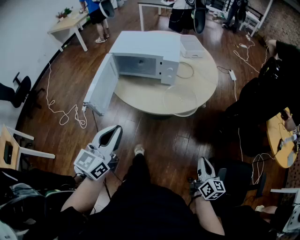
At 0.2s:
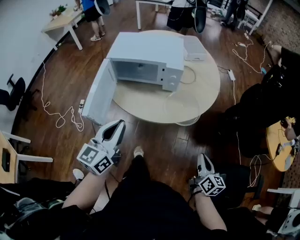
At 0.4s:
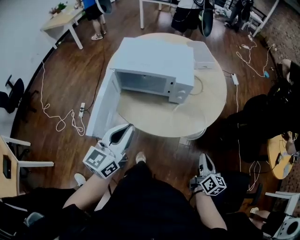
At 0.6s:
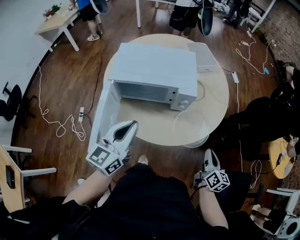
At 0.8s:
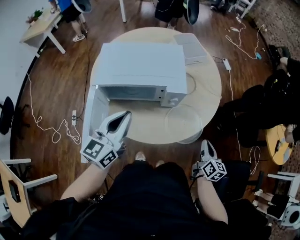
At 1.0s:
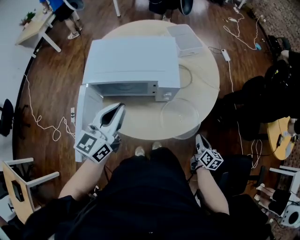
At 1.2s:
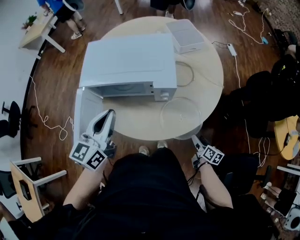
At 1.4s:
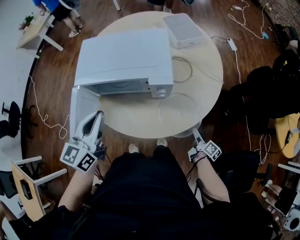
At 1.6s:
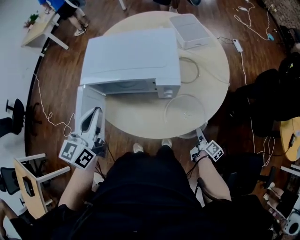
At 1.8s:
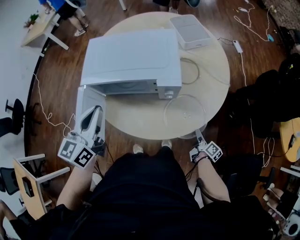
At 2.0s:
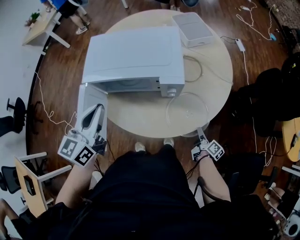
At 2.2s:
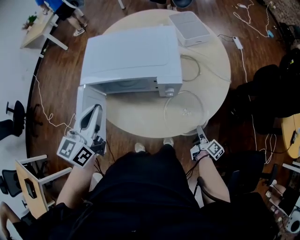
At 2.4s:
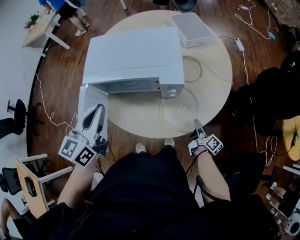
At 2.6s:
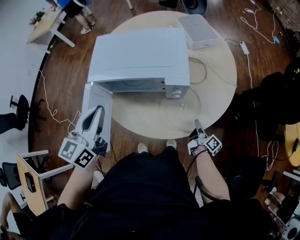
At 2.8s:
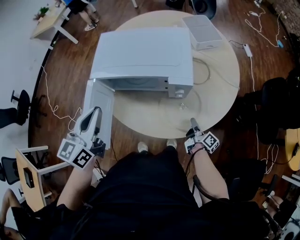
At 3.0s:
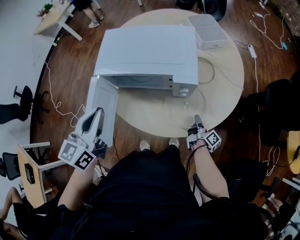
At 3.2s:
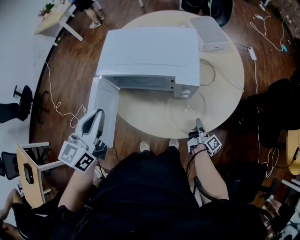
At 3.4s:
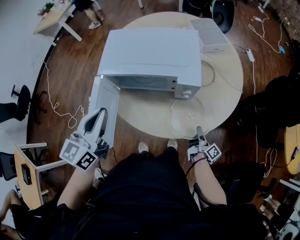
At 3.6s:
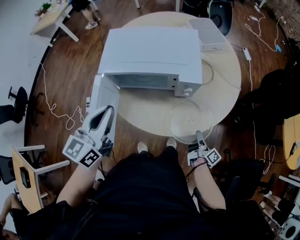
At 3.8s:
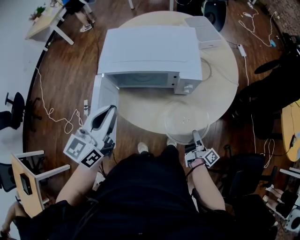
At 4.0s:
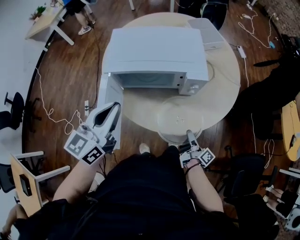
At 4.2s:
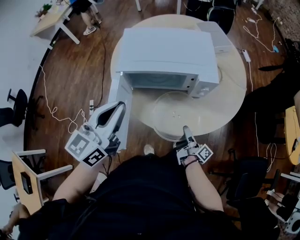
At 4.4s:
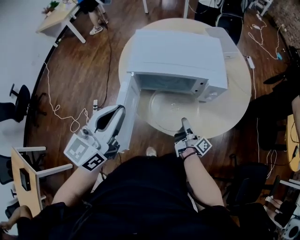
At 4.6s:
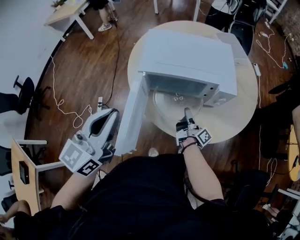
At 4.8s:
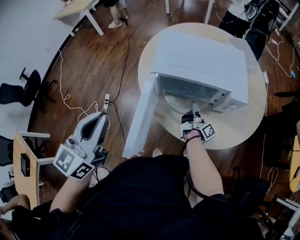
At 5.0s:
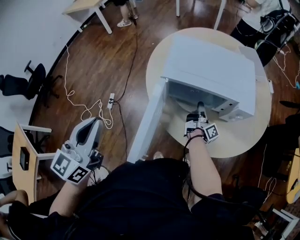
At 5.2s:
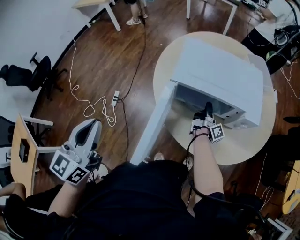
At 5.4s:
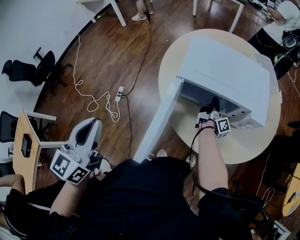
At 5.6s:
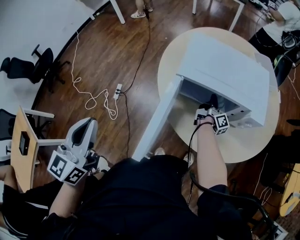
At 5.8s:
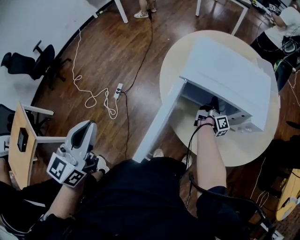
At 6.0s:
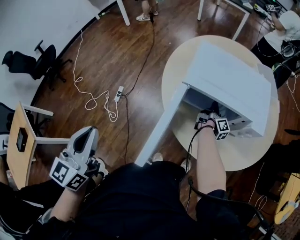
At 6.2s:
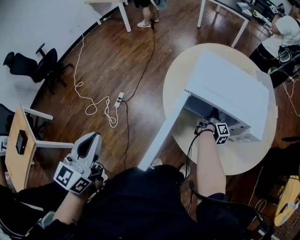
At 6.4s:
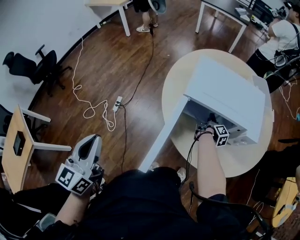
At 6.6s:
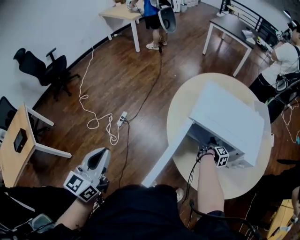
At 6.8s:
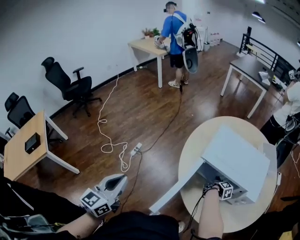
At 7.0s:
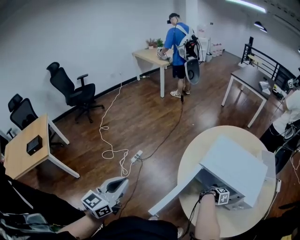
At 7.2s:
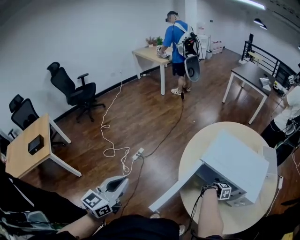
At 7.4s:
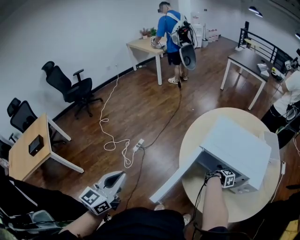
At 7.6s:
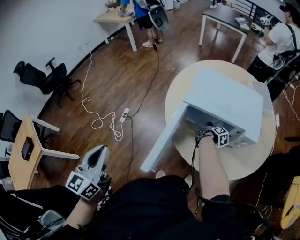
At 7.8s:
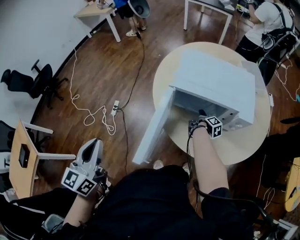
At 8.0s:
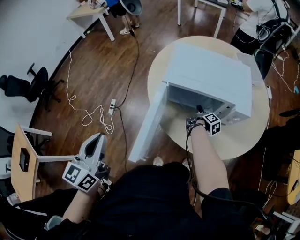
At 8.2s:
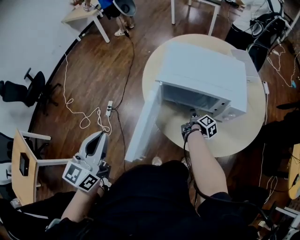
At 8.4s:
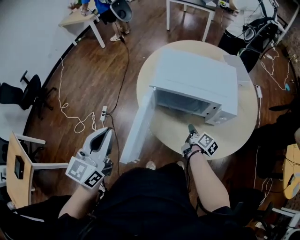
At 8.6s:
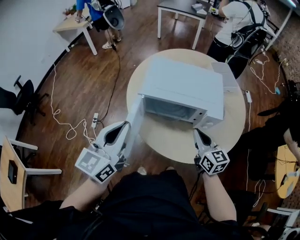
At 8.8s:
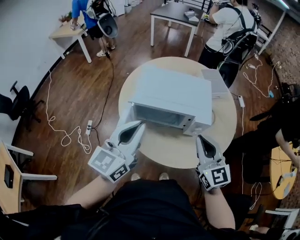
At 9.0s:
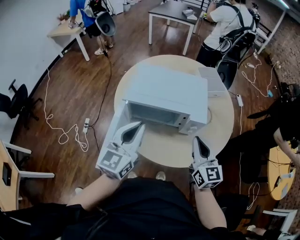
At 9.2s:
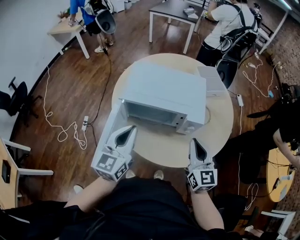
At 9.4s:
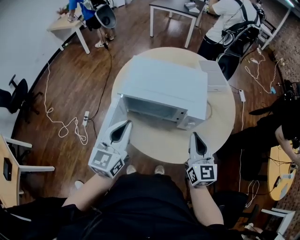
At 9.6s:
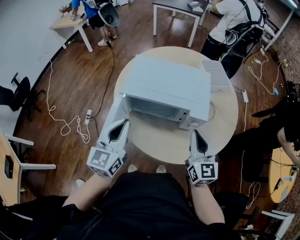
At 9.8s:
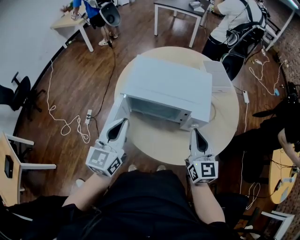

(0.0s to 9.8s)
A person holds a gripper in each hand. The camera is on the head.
0.0s - 1.4s: The left gripper shifts about 25 cm forward; the right gripper goes some 30 cm forward and downward, twists about 40 degrees clockwise, seen from behind, and opens.
1.4s - 2.8s: The left gripper heads to the left, covering approximately 5 cm, while the right gripper heads to the left and forward, covering approximately 10 cm, and closes its fingers.
2.8s - 4.2s: The right gripper travels to the left, upward and backward by roughly 15 cm.
4.2s - 5.6s: The left gripper goes some 25 cm to the left and backward, and swivels approximately 30 degrees; the right gripper heads forward and to the left, covering approximately 30 cm.
5.6s - 7.0s: The right gripper changes place by some 5 cm, angles its fingers downward, by roughly 40 degrees, and opens. Meanwhile the left gripper moves some 5 cm.
7.0s - 8.4s: The left gripper is displaced to the right and forward by roughly 15 cm. Meanwhile the right gripper shifts some 15 cm backward and upward, changes its angle by about 30 degrees, and closes.
8.4s - 9.8s: The left gripper goes about 15 cm to the right and forward. Meanwhile the right gripper is displaced upward by some 25 cm, and rolls counterclockwise, seen from behind, by approximately 60 degrees.

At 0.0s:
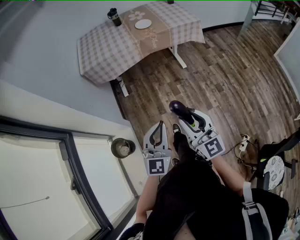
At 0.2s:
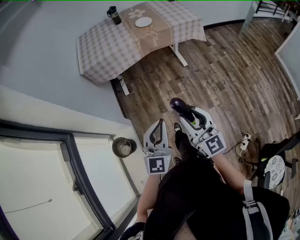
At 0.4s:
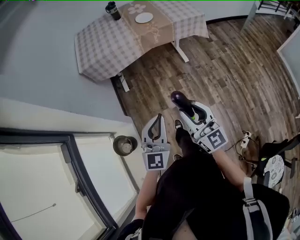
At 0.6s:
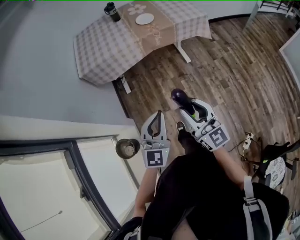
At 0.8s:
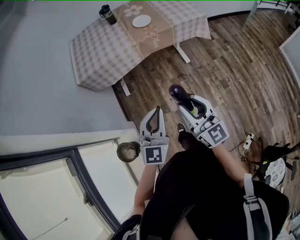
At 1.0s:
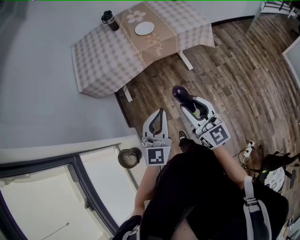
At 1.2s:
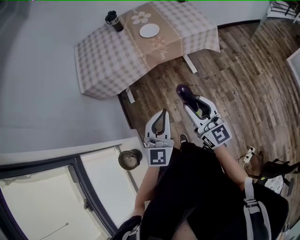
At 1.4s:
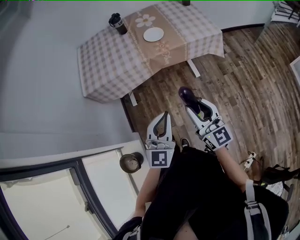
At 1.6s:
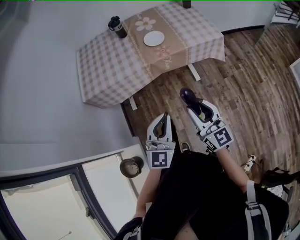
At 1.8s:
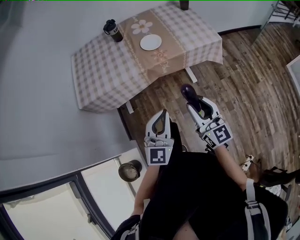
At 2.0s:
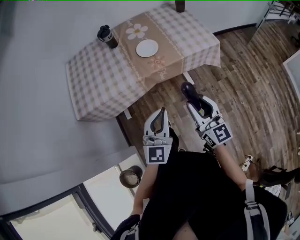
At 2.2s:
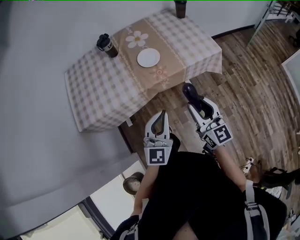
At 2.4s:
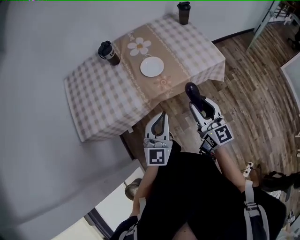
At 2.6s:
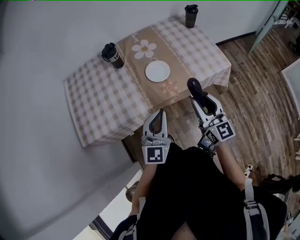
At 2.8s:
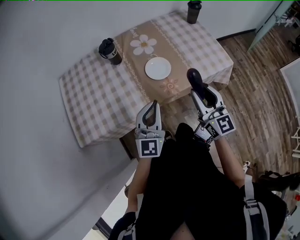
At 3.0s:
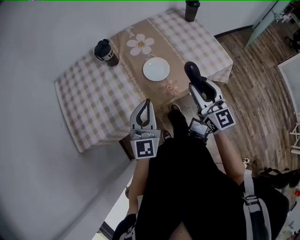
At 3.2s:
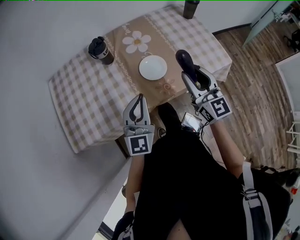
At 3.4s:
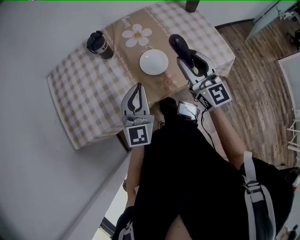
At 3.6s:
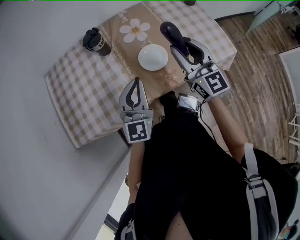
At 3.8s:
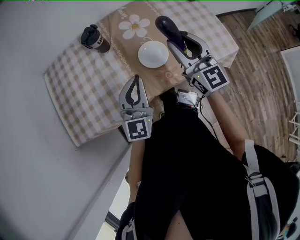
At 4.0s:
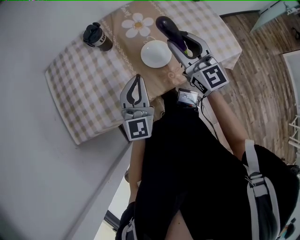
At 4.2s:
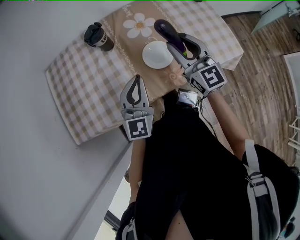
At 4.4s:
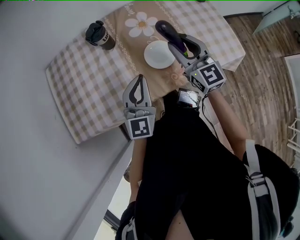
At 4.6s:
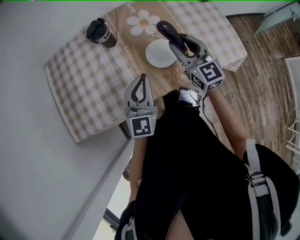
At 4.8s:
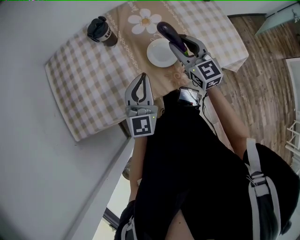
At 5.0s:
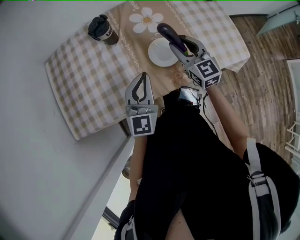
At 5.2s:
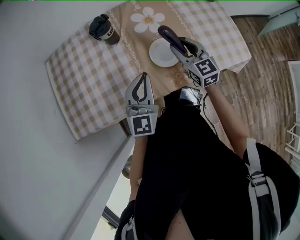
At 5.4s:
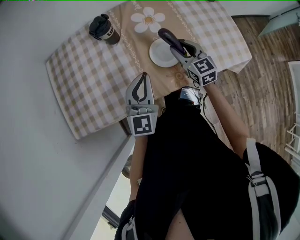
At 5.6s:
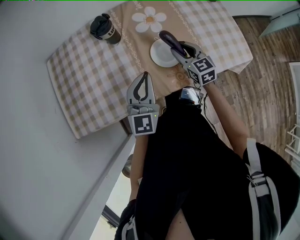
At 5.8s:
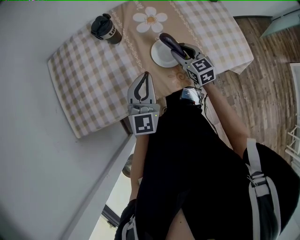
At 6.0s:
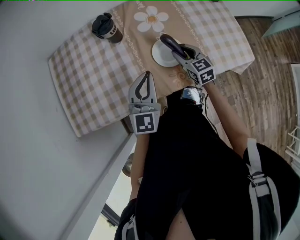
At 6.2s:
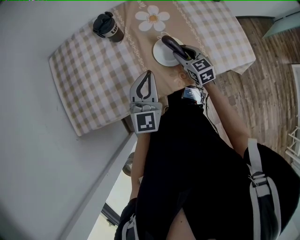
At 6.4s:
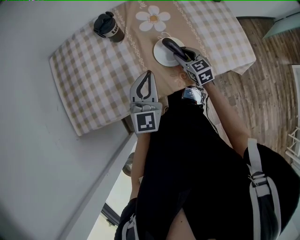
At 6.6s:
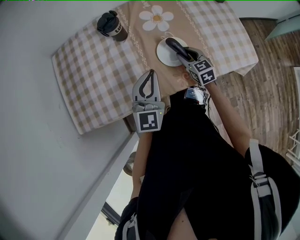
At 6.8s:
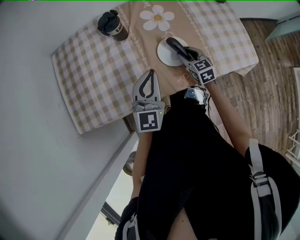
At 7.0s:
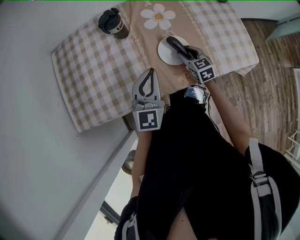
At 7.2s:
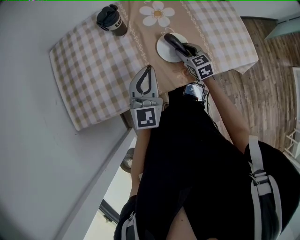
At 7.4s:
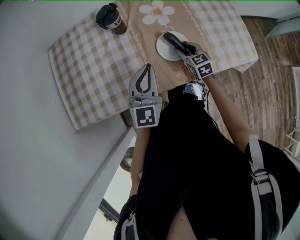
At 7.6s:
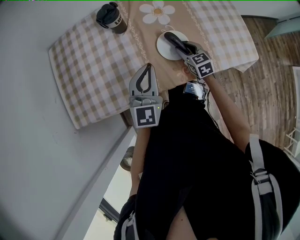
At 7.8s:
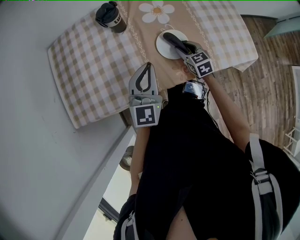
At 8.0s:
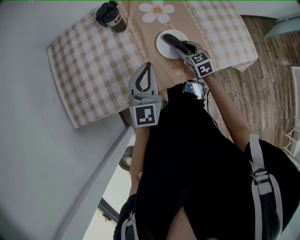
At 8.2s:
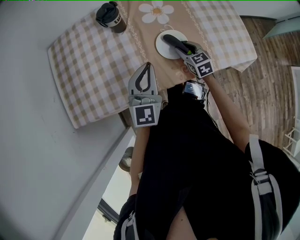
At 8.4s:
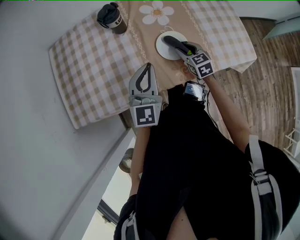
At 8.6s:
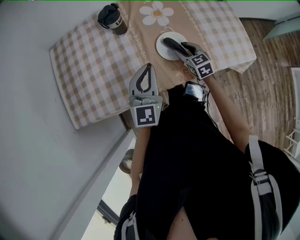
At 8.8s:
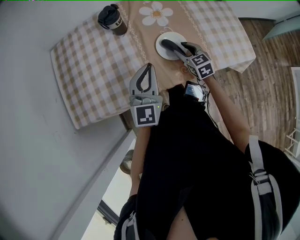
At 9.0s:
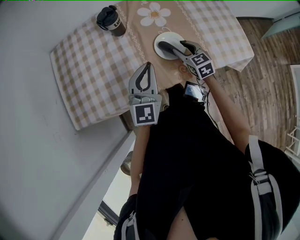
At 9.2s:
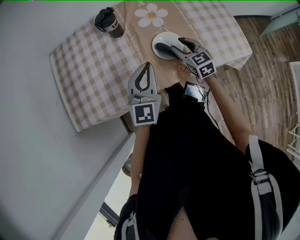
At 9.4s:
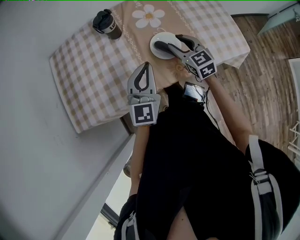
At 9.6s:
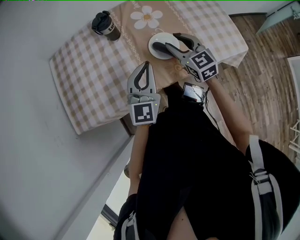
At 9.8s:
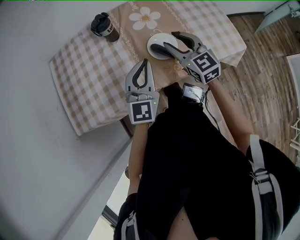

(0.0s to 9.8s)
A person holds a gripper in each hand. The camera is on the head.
0.0s - 1.4s: Both grippers travel together forward, about 30 cm.
1.4s - 2.8s: Both grippers move forward, some 40 cm.
2.8s - 4.2s: The left gripper goes roughly 10 cm forward. Meanwhile the right gripper moves forward, approximately 20 cm.
4.2s - 5.6s: The right gripper is displaced downward by about 15 cm, and rotates roughly 20 degrees.
5.6s - 7.0s: The right gripper goes some 5 cm downward.
7.0s - 8.4s: The two grippers keep their place.
8.4s - 9.8s: The right gripper moves upward, roughly 20 cm, and turns by approximately 20 degrees, while the left gripper moves some 5 cm.

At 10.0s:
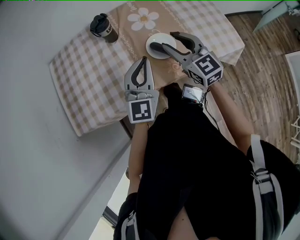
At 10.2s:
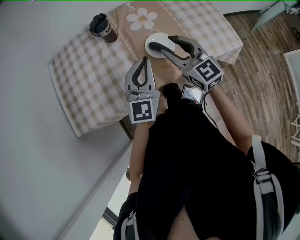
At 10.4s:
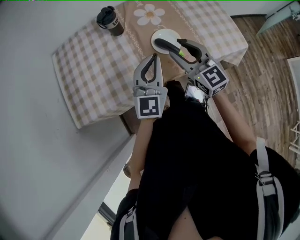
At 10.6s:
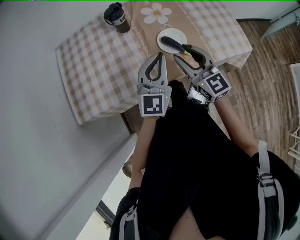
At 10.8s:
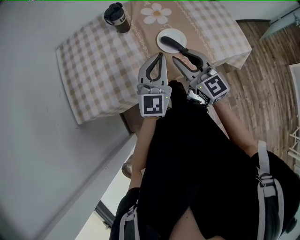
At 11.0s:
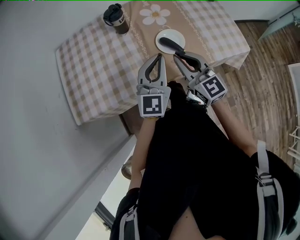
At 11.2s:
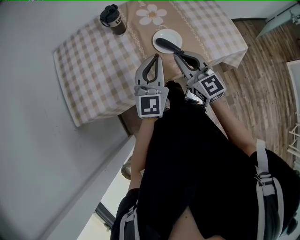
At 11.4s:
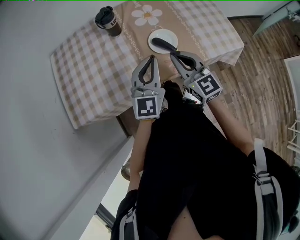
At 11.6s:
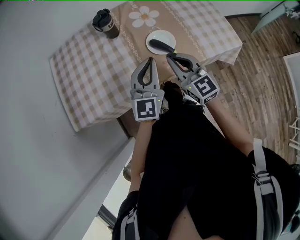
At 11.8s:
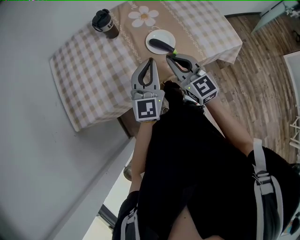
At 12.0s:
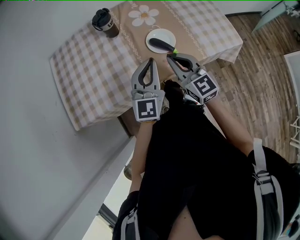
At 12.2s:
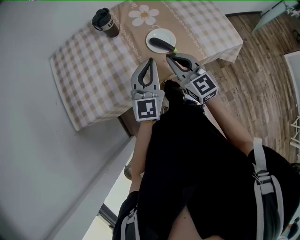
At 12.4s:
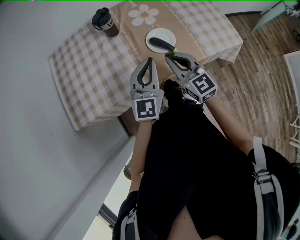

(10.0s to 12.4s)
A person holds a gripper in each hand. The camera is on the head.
10.0s - 11.2s: The right gripper heads backward, covering some 10 cm, and closes.
11.2s - 12.4s: The grippers stay close to where they were, moving slightly.

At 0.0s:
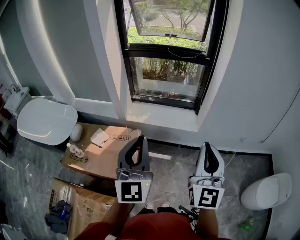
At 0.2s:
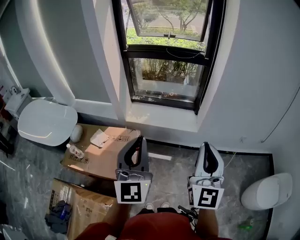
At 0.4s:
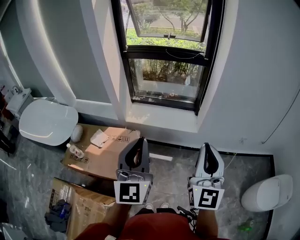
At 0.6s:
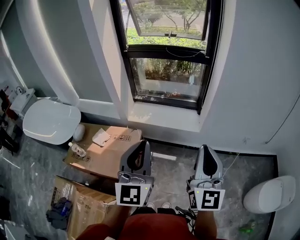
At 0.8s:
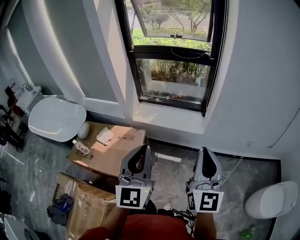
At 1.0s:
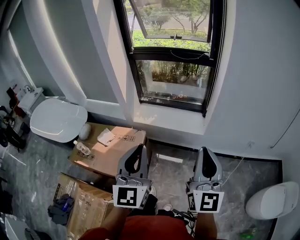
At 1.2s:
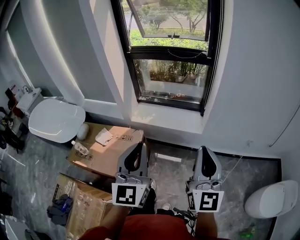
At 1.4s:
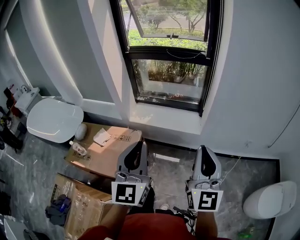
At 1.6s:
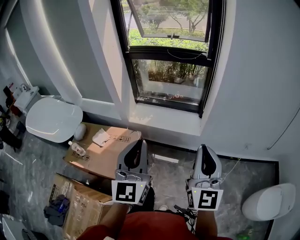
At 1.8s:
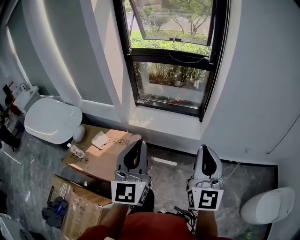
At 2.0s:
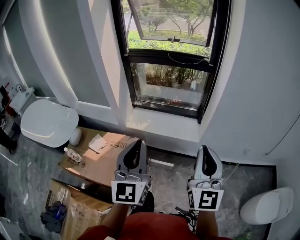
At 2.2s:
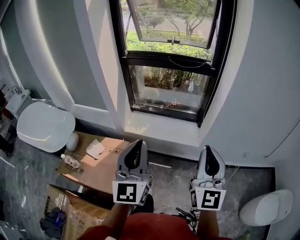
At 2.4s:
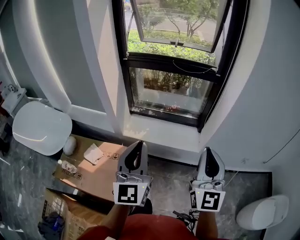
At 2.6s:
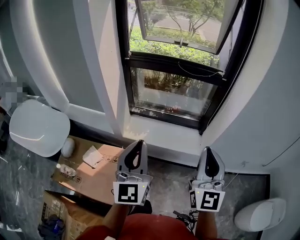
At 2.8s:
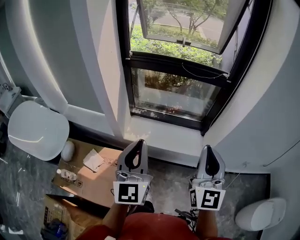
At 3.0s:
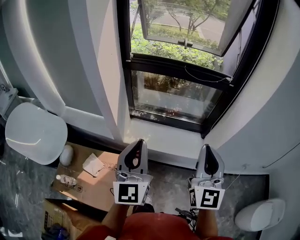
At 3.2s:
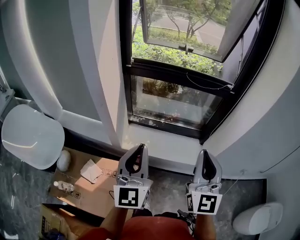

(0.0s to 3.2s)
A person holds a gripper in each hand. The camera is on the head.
0.0s - 1.6s: The grippers both shift to the right by roughly 5 cm.
1.6s - 3.2s: Both grippers move forward and to the left, about 35 cm.
